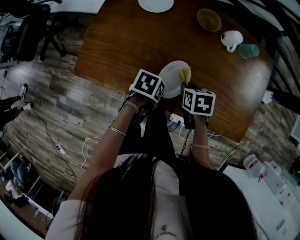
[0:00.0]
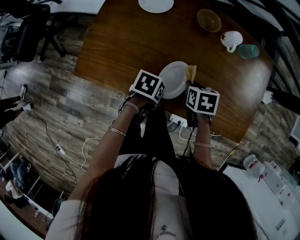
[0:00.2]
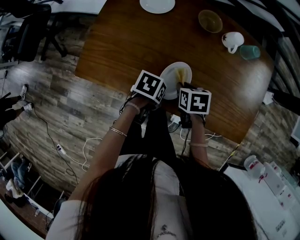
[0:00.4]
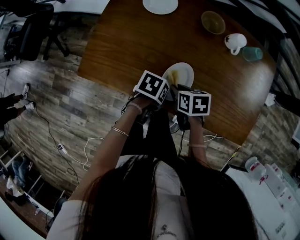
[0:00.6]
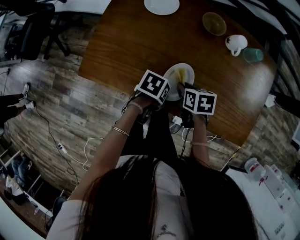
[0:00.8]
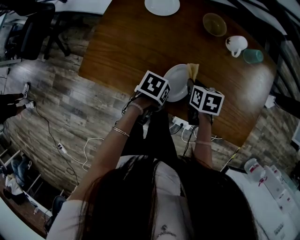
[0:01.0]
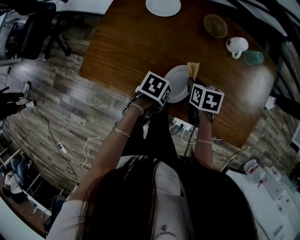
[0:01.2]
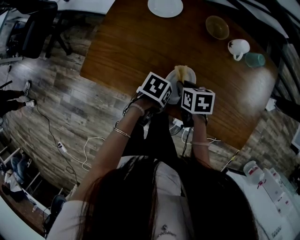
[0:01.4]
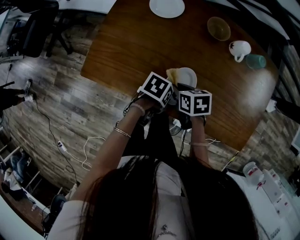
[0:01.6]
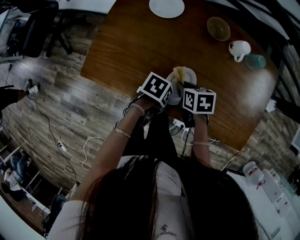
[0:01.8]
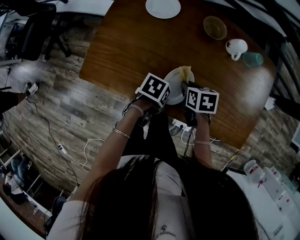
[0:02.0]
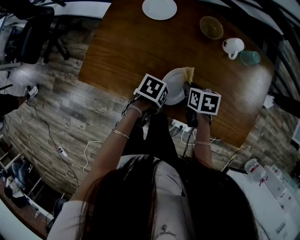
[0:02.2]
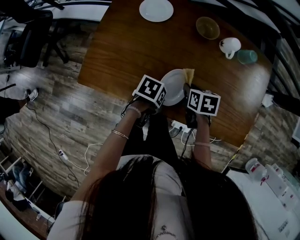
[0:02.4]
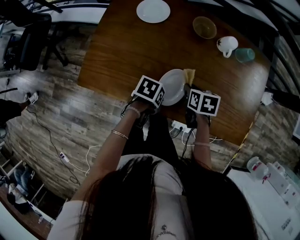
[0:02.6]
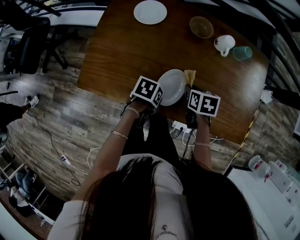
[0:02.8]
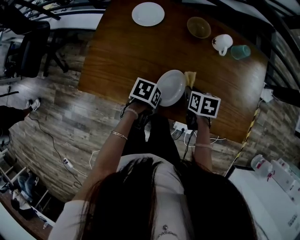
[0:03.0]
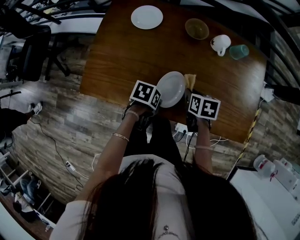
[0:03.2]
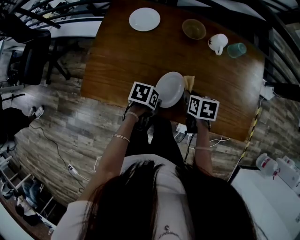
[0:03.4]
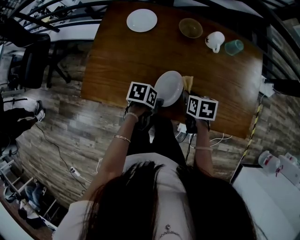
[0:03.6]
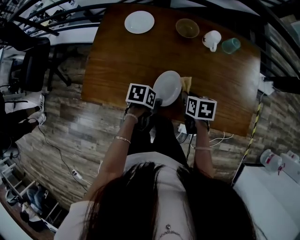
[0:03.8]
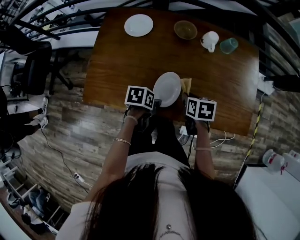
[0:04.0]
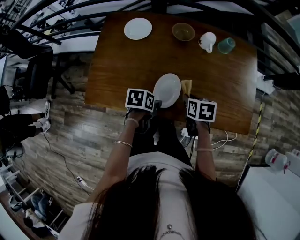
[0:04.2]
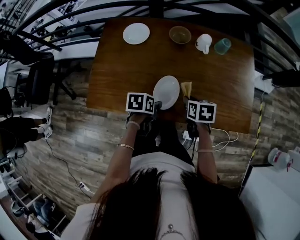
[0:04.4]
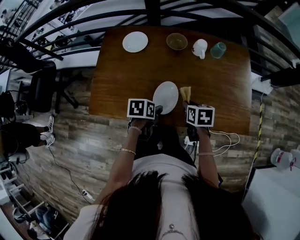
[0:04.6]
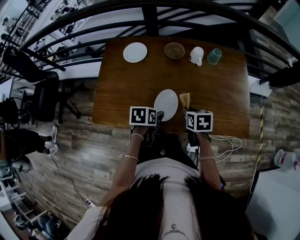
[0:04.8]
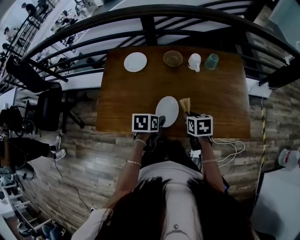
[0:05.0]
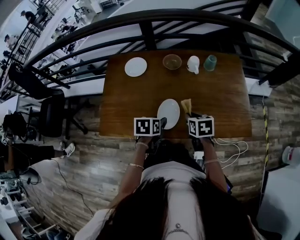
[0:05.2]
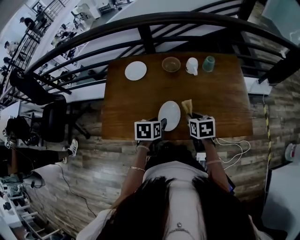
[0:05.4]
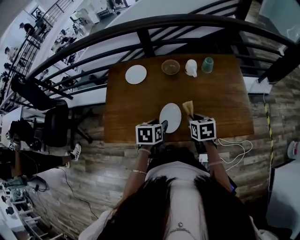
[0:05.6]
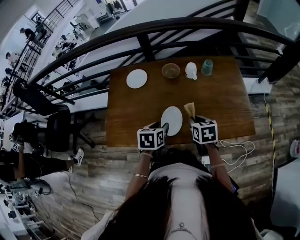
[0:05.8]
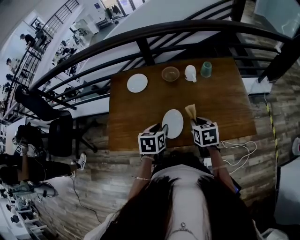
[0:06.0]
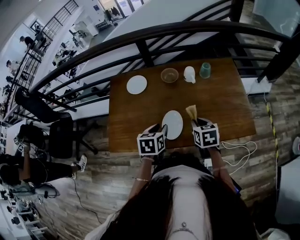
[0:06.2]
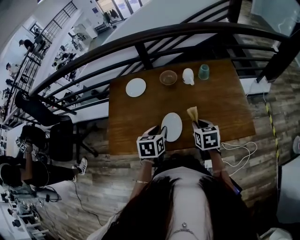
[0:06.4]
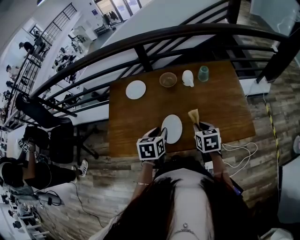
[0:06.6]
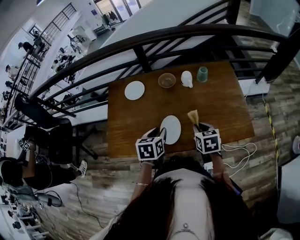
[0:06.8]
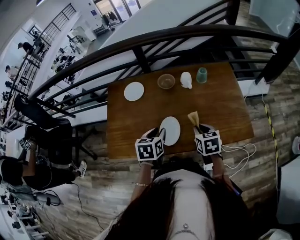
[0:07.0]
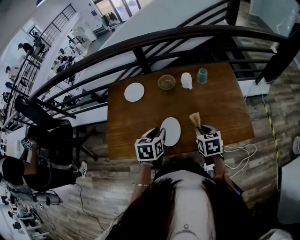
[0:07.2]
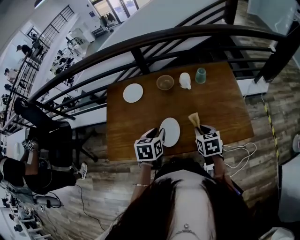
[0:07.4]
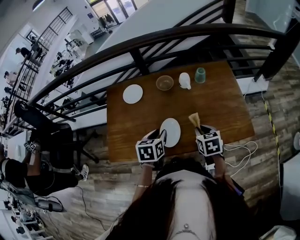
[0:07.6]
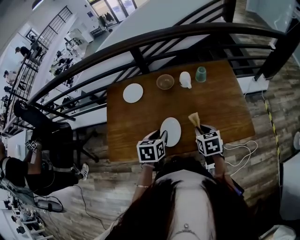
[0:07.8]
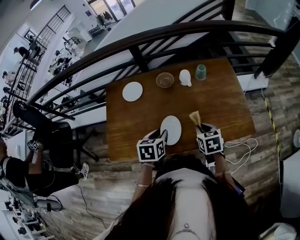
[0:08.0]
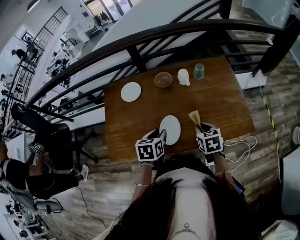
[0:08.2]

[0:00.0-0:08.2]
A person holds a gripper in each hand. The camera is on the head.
0:00.0 to 0:01.6: The right gripper changes place by approximately 10 cm.
0:01.6 to 0:03.2: The right gripper shifts by some 10 cm, and rotates roughly 20 degrees.
0:03.2 to 0:05.0: The grippers both shift upward by approximately 10 cm. The left gripper rotates approximately 20 degrees.
0:05.0 to 0:06.6: The grippers both shift upward by about 10 cm. The left gripper rotates approximately 20 degrees.
0:06.6 to 0:08.2: The grippers stay close to where they were, moving slightly.

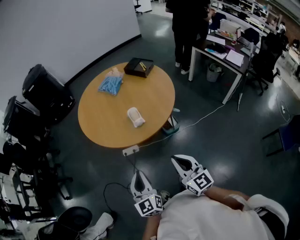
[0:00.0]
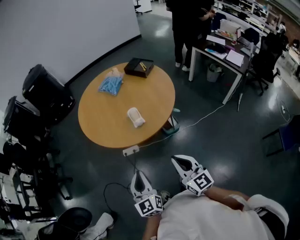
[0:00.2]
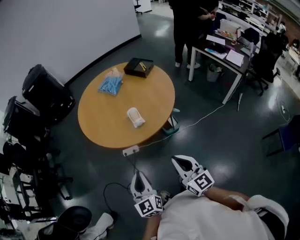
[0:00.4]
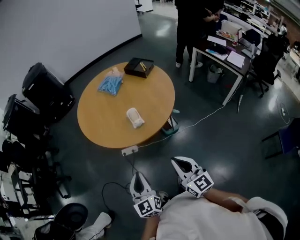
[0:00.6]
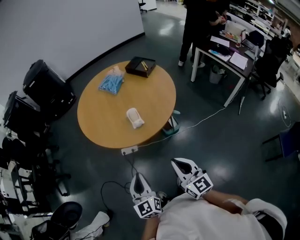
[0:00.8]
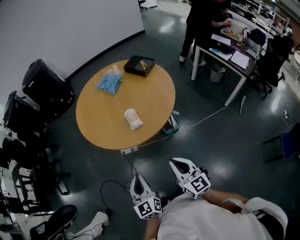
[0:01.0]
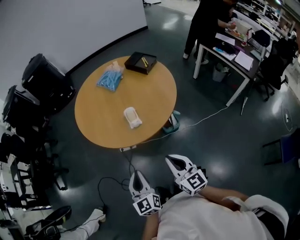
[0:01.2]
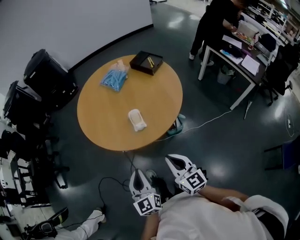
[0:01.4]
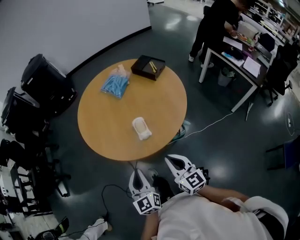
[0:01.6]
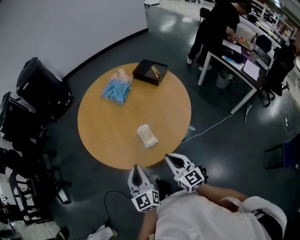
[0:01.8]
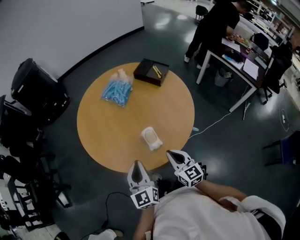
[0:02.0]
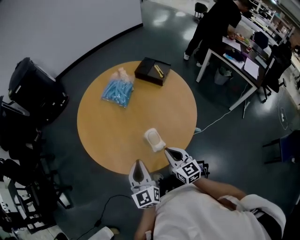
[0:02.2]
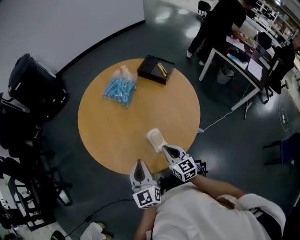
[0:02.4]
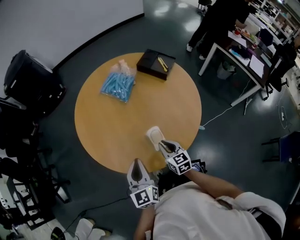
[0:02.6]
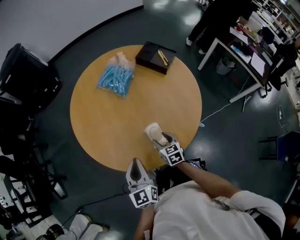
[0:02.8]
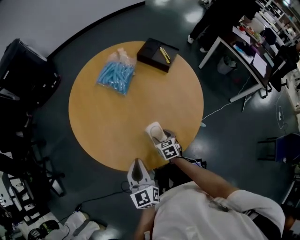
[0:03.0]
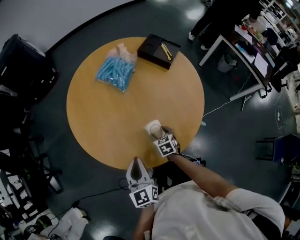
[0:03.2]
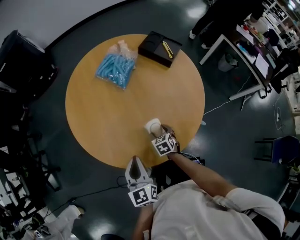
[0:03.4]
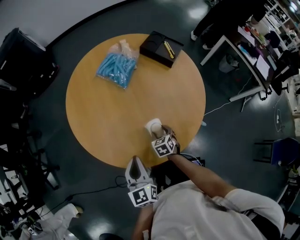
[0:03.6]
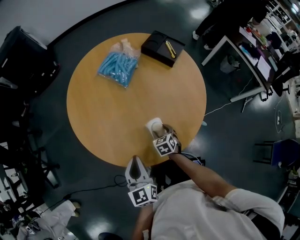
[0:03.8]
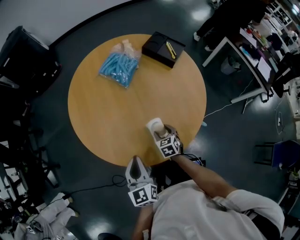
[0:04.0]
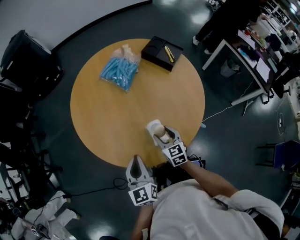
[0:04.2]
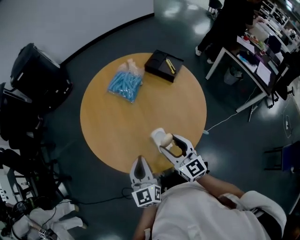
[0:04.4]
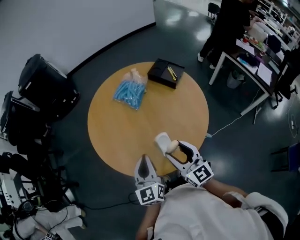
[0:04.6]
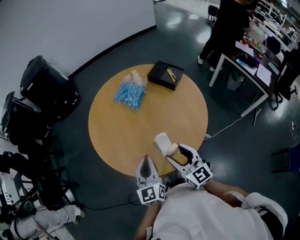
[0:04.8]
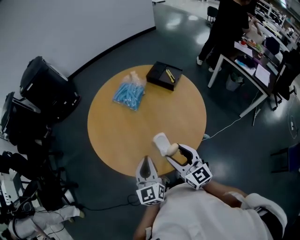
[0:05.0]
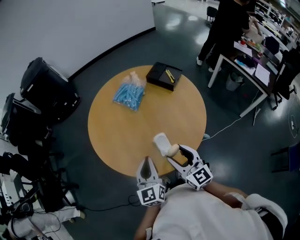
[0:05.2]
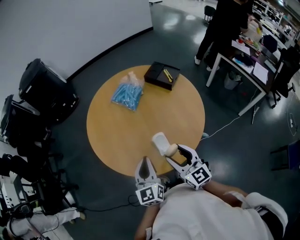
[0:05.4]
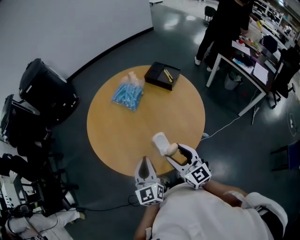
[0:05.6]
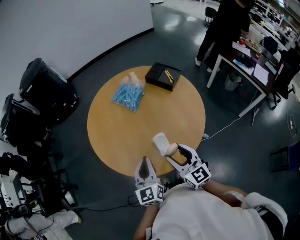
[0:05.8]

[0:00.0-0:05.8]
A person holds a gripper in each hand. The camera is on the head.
0:00.0 to 0:01.4: The right gripper heads forward, covering some 10 cm, while the left gripper travels forward and to the right by roughly 10 cm.
0:01.4 to 0:02.8: The left gripper is displaced forward by some 30 cm; the right gripper goes approximately 40 cm forward and downward, tips its fingers downward by roughly 30 degrees, and opens up.
0:02.8 to 0:04.4: The right gripper travels upward by some 20 cm, and angles its fingers upward, by about 30 degrees.
0:04.4 to 0:05.8: The right gripper is displaced backward by roughly 5 cm.

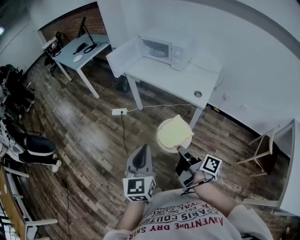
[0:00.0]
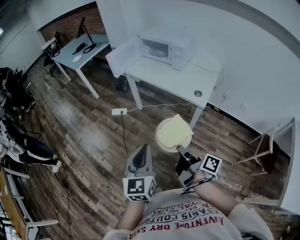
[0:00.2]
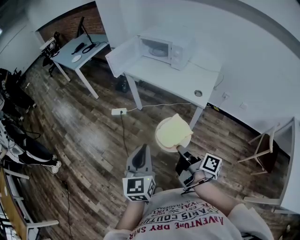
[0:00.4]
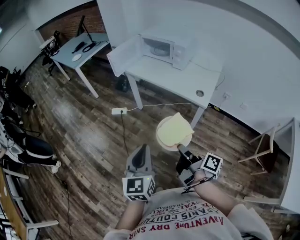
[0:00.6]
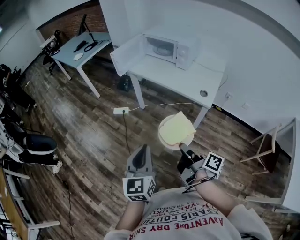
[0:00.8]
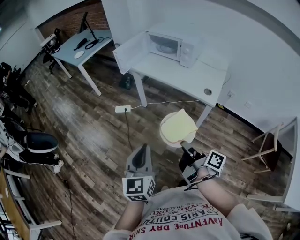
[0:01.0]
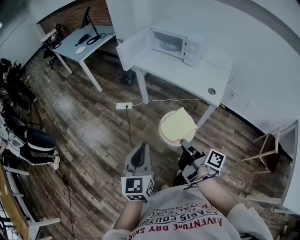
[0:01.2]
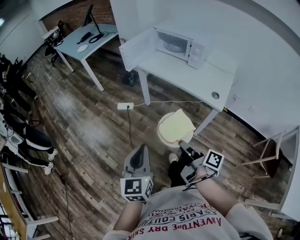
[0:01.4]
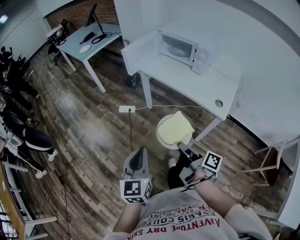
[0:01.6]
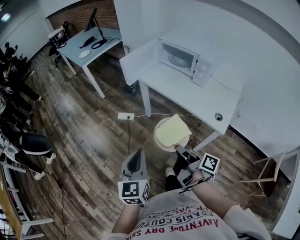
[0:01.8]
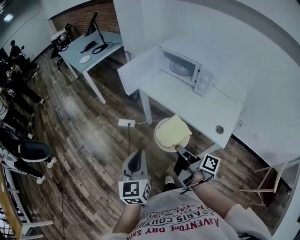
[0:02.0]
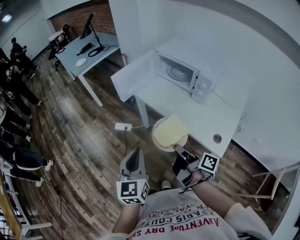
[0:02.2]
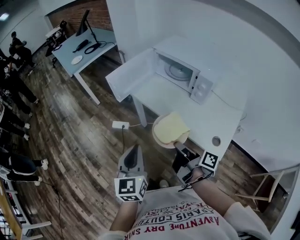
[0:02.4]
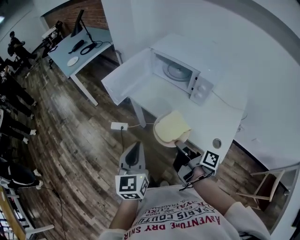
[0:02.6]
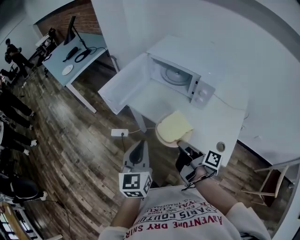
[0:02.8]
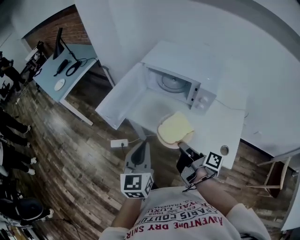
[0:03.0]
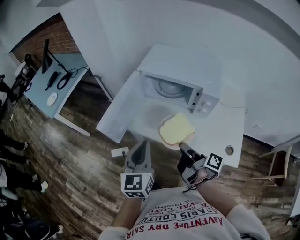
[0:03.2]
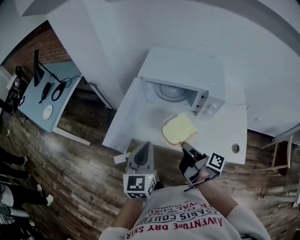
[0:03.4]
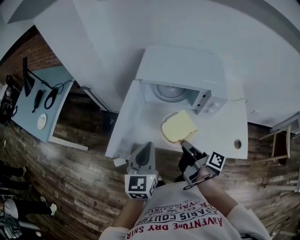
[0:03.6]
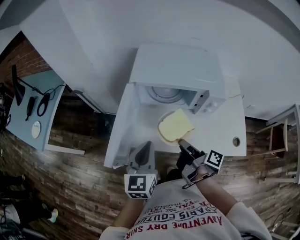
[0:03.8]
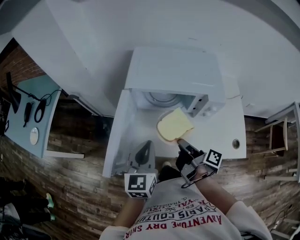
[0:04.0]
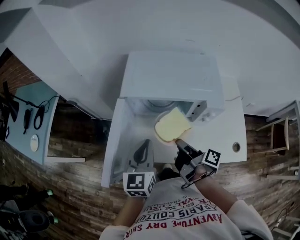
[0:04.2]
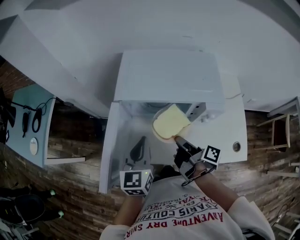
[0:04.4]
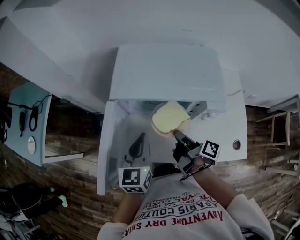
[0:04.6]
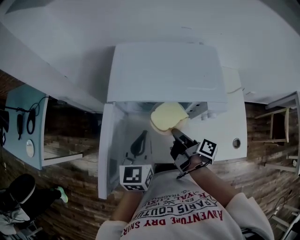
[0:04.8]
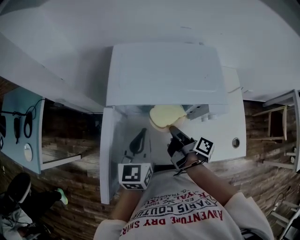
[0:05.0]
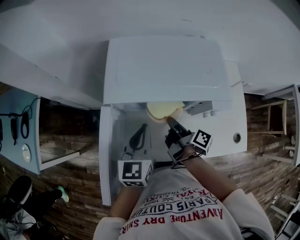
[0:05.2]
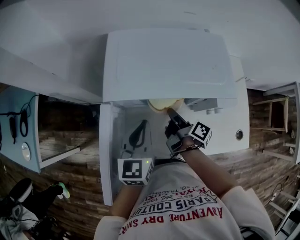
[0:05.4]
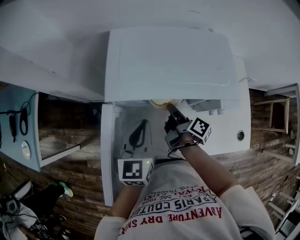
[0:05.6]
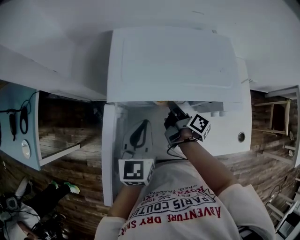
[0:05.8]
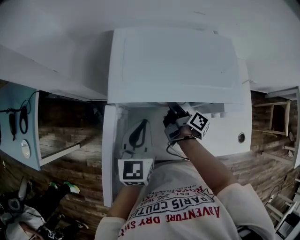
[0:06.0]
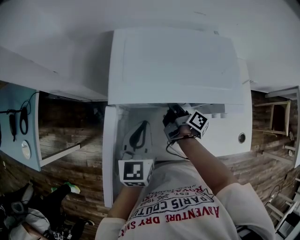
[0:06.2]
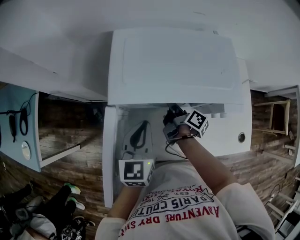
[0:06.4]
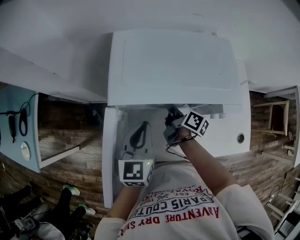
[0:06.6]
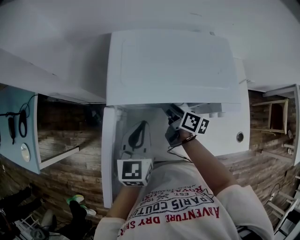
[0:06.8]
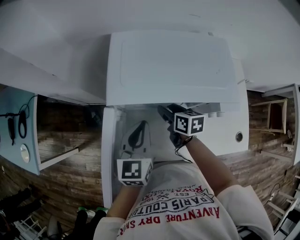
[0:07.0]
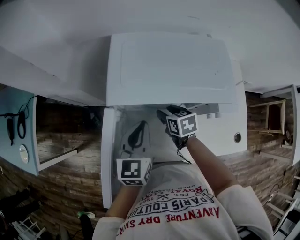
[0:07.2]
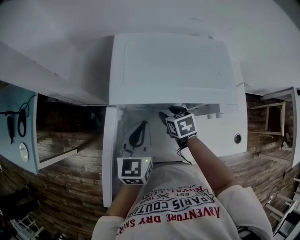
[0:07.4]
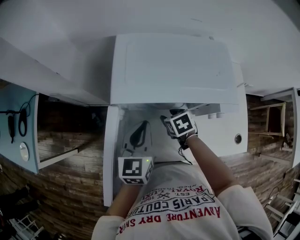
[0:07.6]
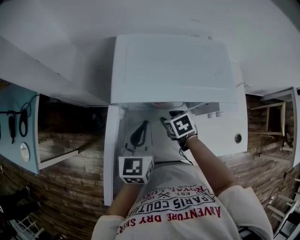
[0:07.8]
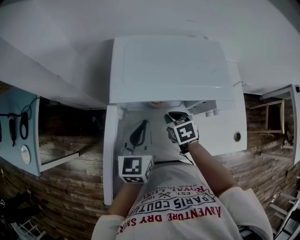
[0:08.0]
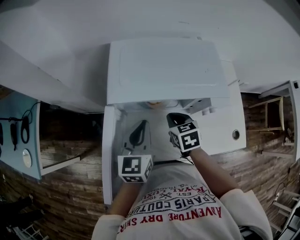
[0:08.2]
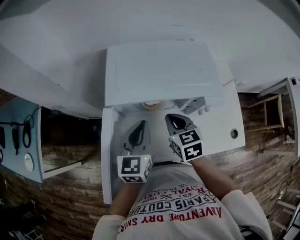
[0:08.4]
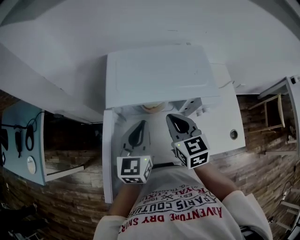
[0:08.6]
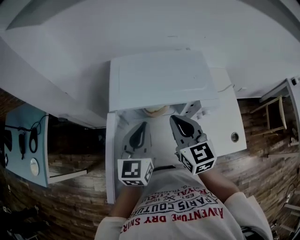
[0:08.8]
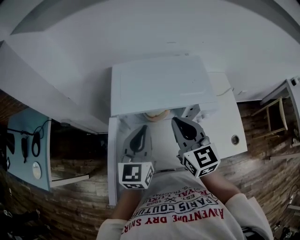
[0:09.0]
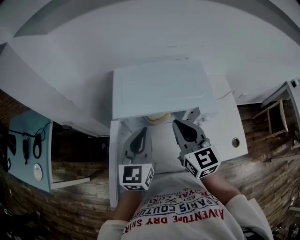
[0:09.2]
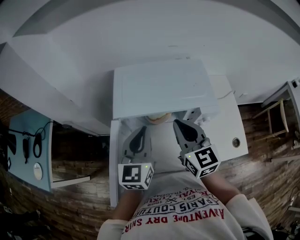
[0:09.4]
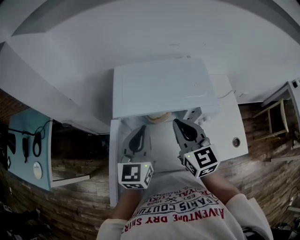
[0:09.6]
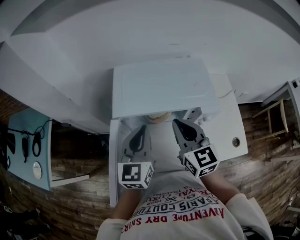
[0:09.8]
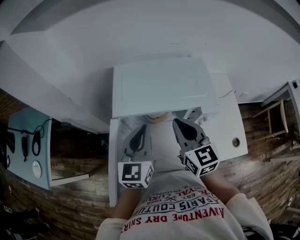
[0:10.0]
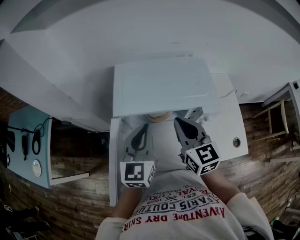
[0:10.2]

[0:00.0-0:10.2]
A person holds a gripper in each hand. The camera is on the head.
0:00.0 to 0:01.4: The left gripper shifts by about 15 cm.
0:01.4 to 0:03.0: The left gripper moves some 50 cm.
0:03.0 to 0:04.4: The left gripper changes place by approximately 30 cm, and rotates about 20 degrees.
0:04.4 to 0:05.8: The left gripper ends up some 10 cm from where it was.
0:07.2 to 0:08.8: The left gripper travels upward by about 10 cm.
